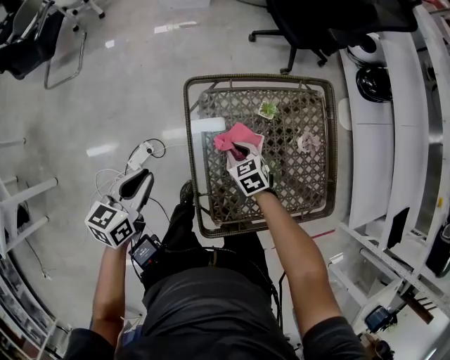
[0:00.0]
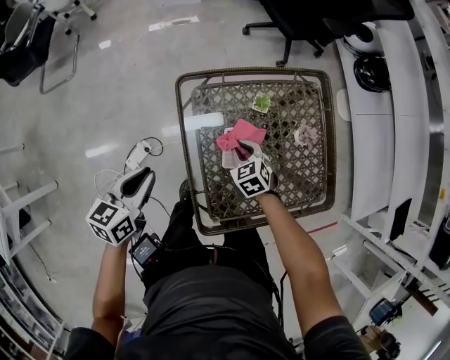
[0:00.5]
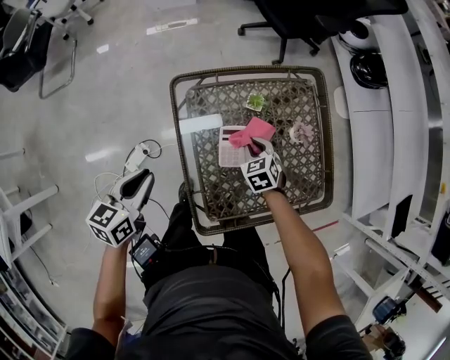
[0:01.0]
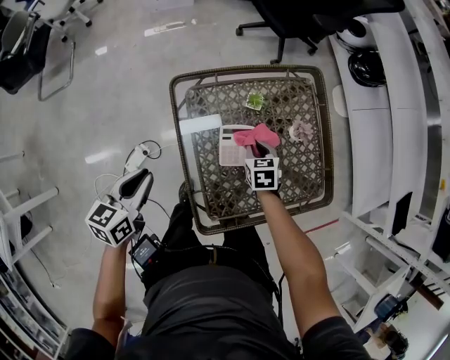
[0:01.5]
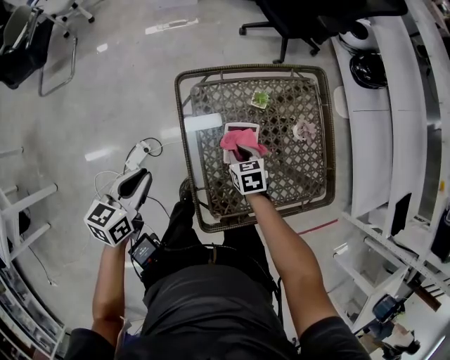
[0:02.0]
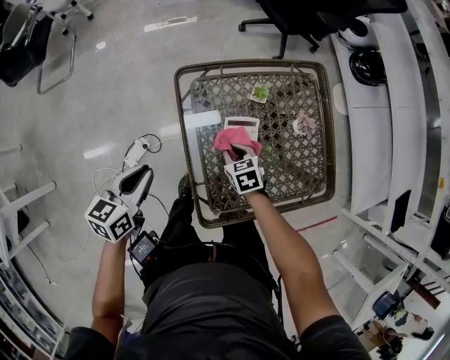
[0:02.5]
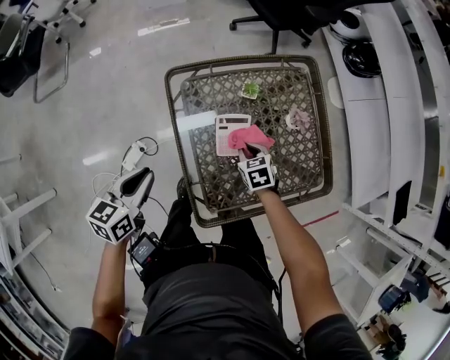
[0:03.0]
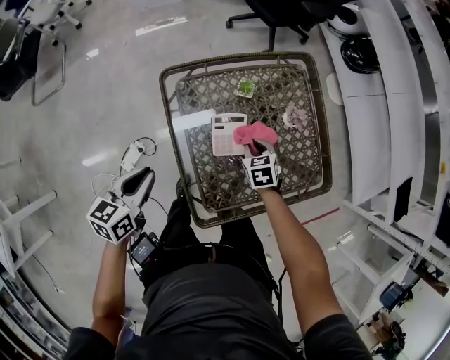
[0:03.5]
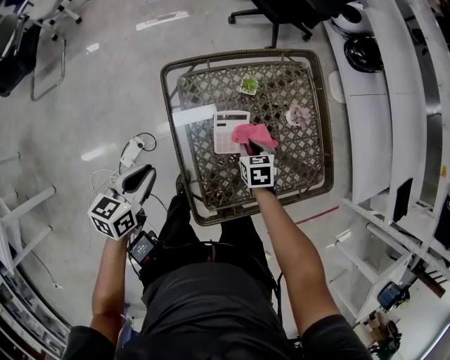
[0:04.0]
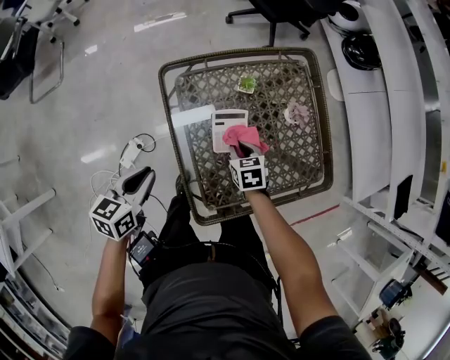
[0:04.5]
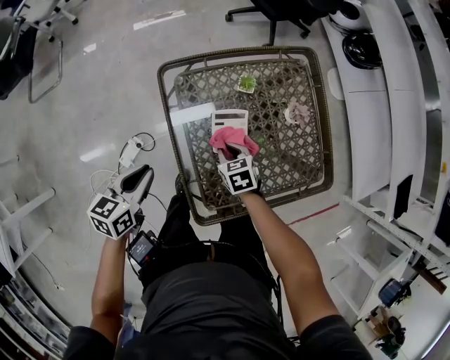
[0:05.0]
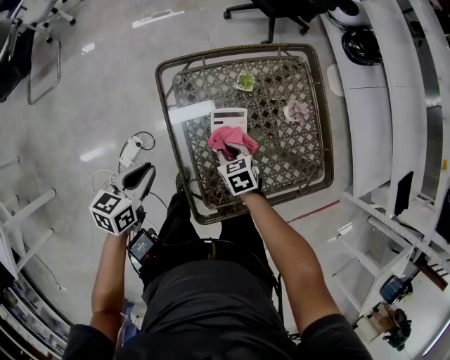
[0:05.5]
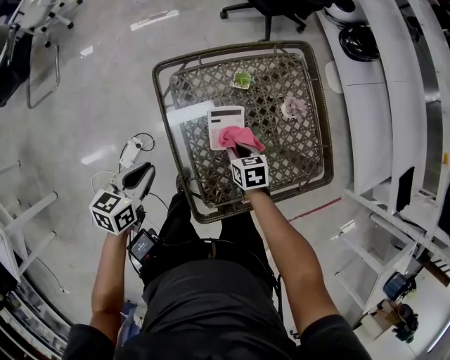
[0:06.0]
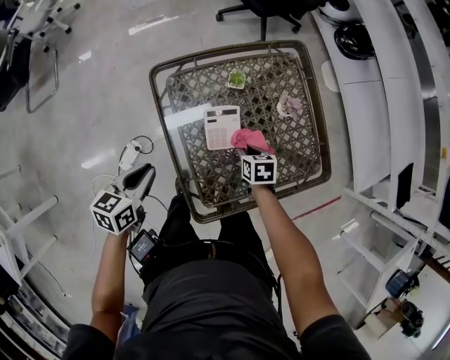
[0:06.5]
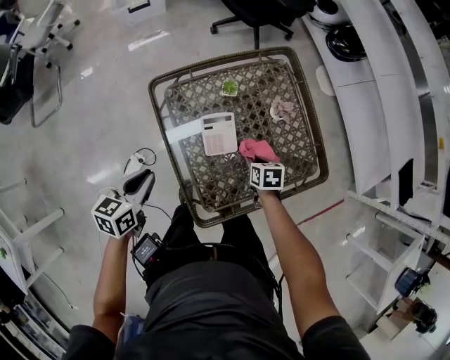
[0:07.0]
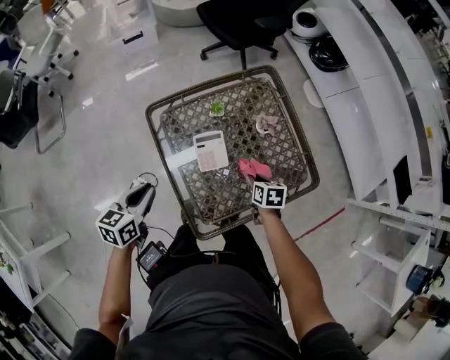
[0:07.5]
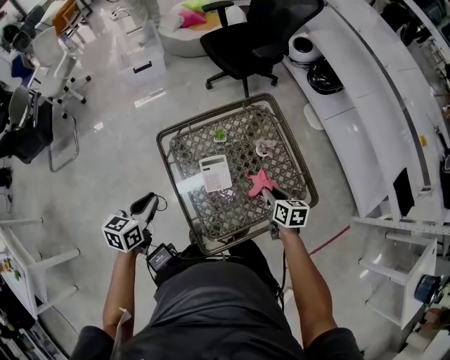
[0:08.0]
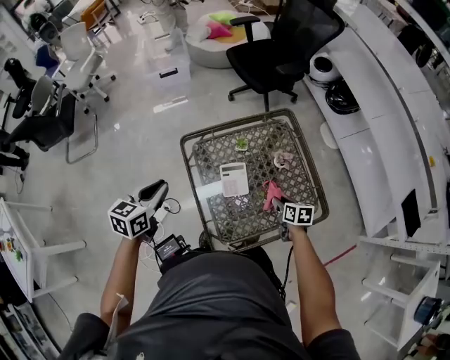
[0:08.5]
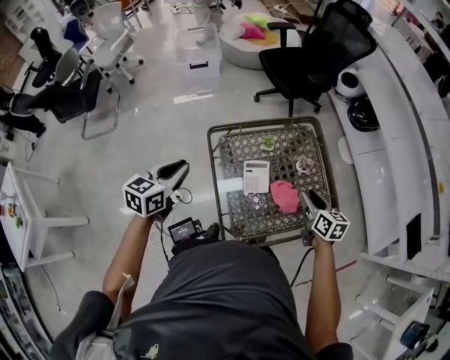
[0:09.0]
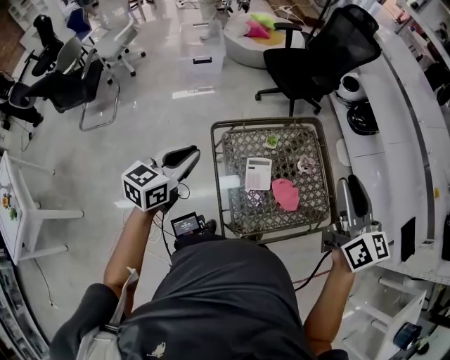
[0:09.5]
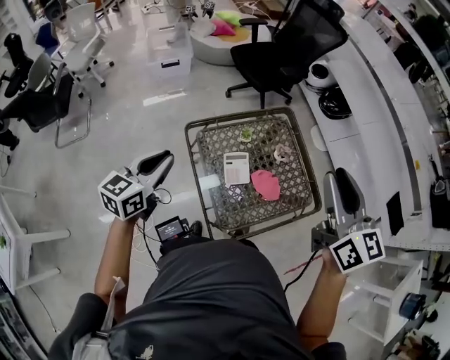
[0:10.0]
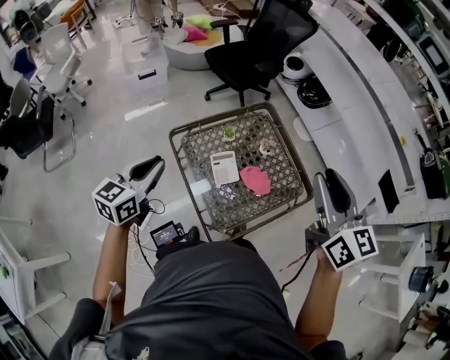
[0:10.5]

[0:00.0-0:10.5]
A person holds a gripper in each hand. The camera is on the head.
0:00.0 to 0:02.0: The right gripper turns by approximately 20 degrees.
0:02.0 to 0:04.0: The left gripper moves roughly 5 cm. Meanwhile the right gripper is displaced to the right by approximately 10 cm.
0:04.0 to 0:06.5: The right gripper reaches some 5 cm to the left, then returns.
0:06.5 to 0:08.5: The right gripper goes approximately 15 cm to the right and upward, while the left gripper goes roughly 15 cm upward.
0:08.5 to 0:10.5: The left gripper moves upward, roughly 10 cm; the right gripper heads upward, covering approximately 50 cm, and tips its fingers upward by approximately 40 degrees.

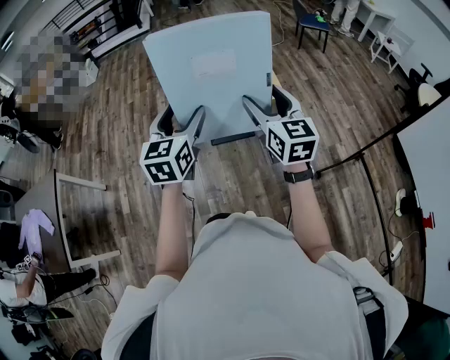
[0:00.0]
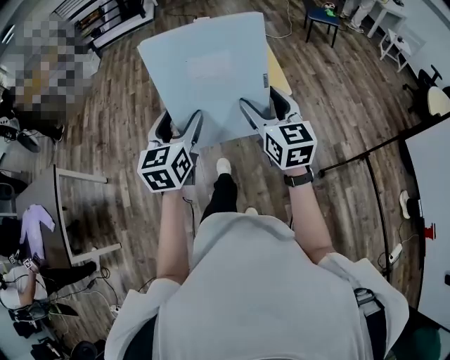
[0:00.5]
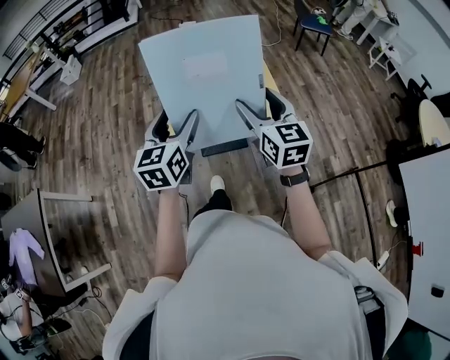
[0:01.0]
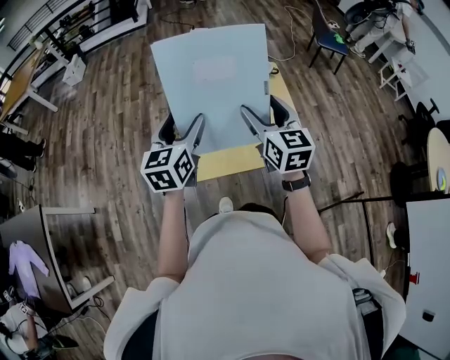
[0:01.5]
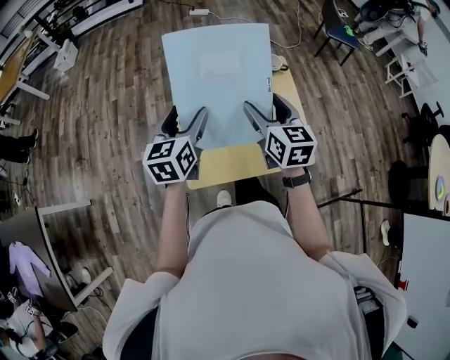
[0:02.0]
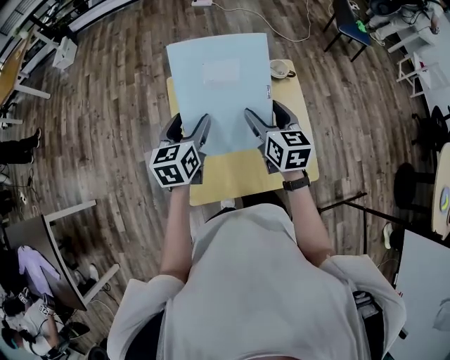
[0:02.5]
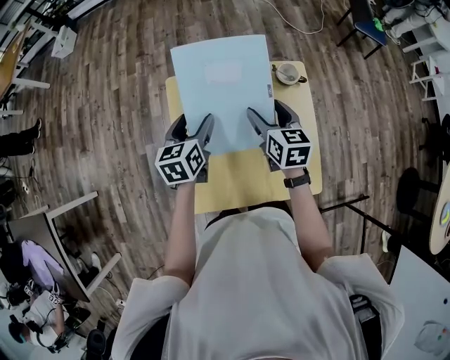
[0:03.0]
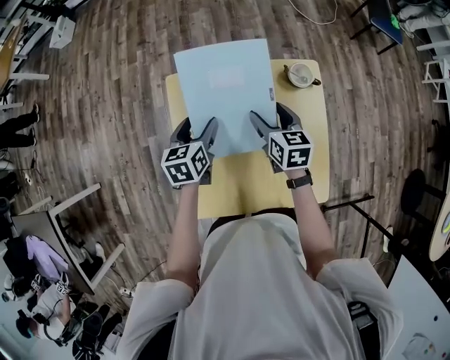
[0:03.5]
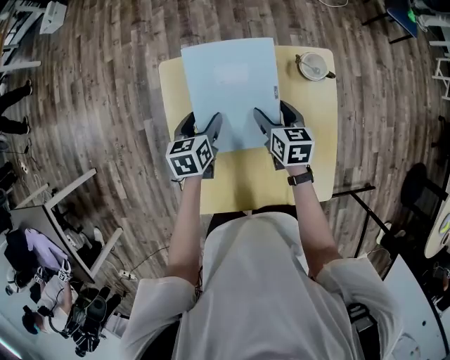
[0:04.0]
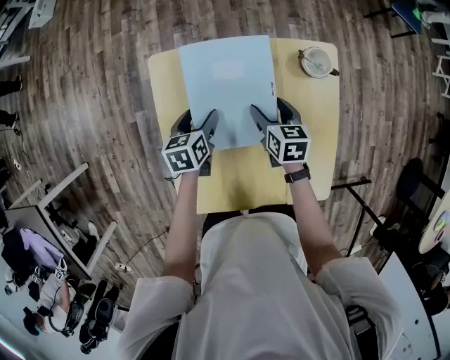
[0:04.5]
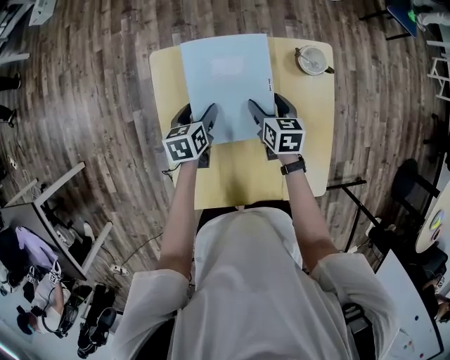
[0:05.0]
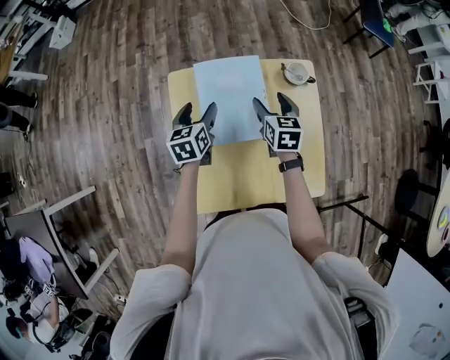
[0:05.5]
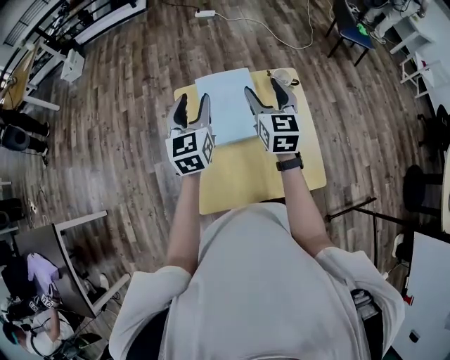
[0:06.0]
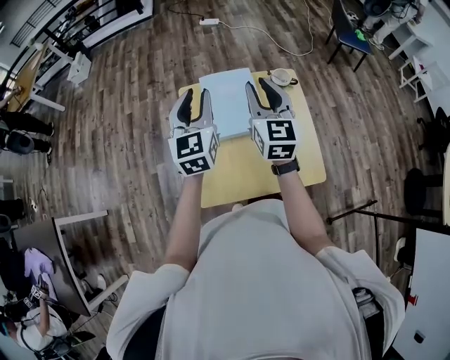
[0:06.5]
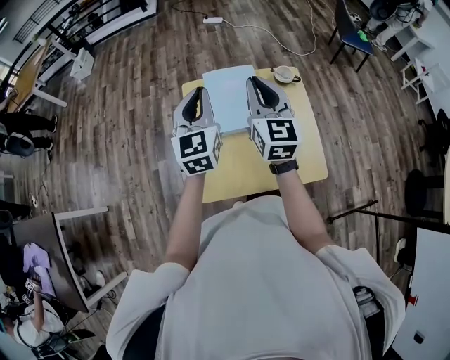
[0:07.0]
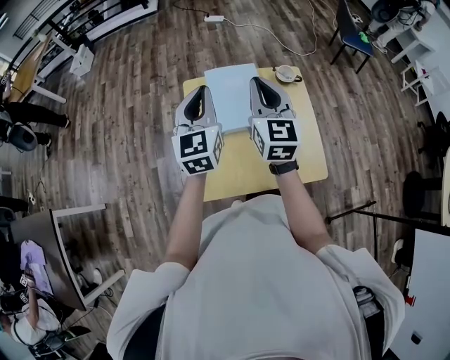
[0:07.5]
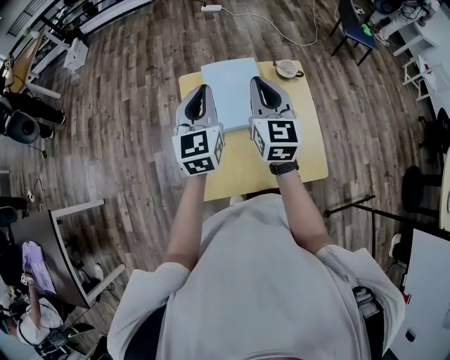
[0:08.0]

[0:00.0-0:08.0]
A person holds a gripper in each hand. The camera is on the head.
0:00.0 to 0:02.0: The pair of grippers is taken forward, some 40 cm.
0:02.0 to 0:04.0: Both grippers travel together downward and forward, about 35 cm. The left gripper swivels about 30 degrees, while the right gripper rotates some 30 degrees.
0:04.0 to 0:06.0: Both grippers travel together upward, some 25 cm. The left gripper angles its fingers upward, by about 30 degrees. The right gripper swivels approximately 40 degrees.
0:06.0 to 0:08.0: Both grippers travel together backward, roughly 5 cm. The left gripper closes up; the right gripper closes.

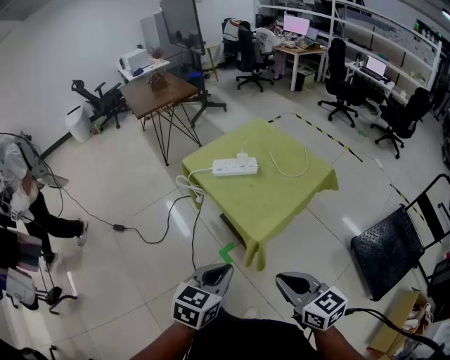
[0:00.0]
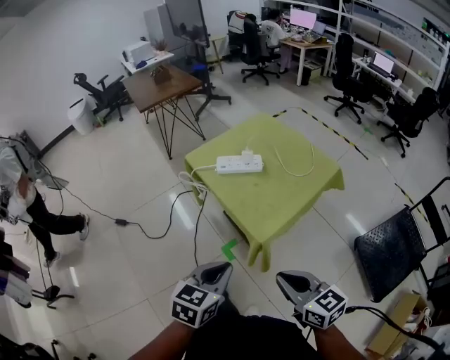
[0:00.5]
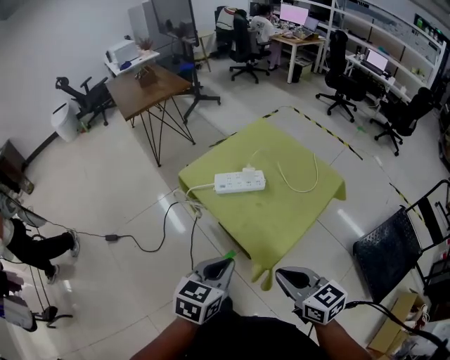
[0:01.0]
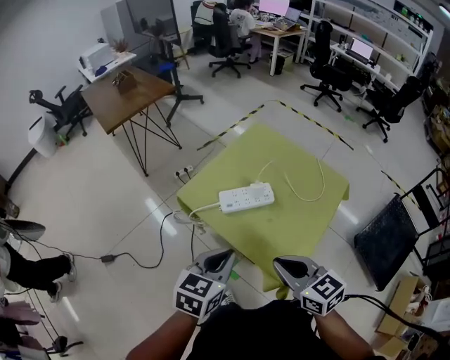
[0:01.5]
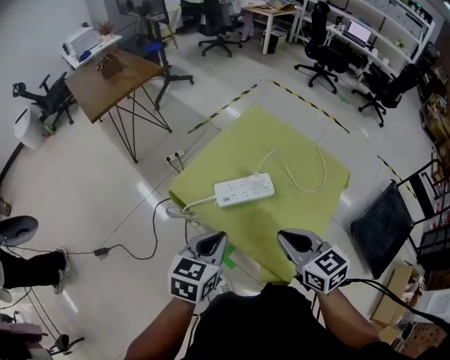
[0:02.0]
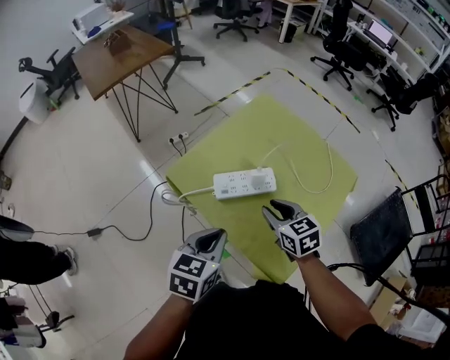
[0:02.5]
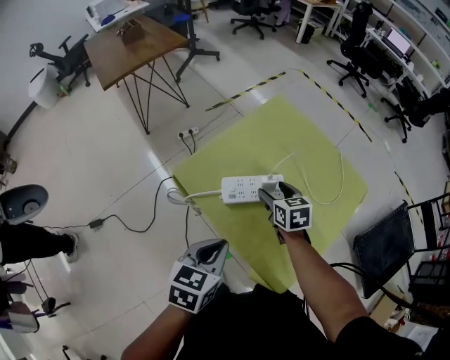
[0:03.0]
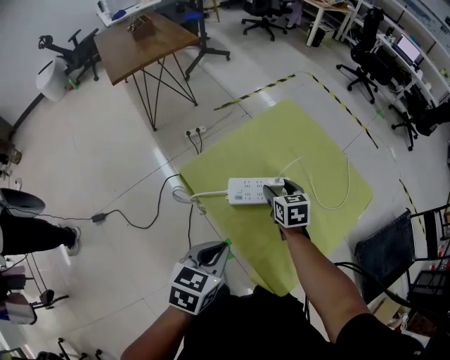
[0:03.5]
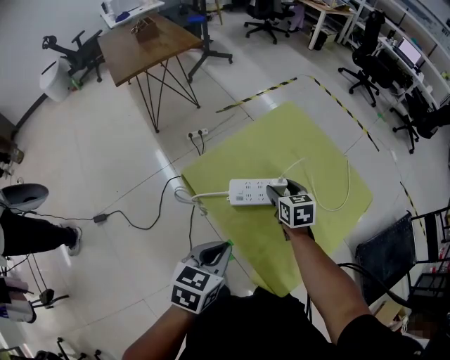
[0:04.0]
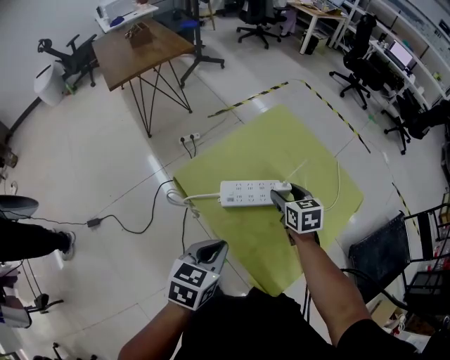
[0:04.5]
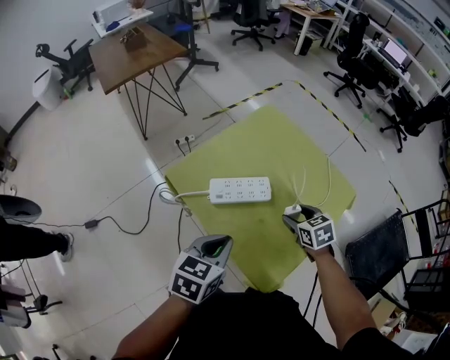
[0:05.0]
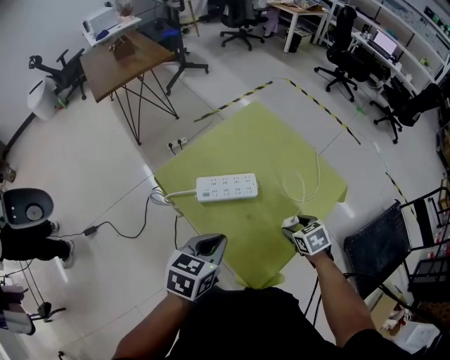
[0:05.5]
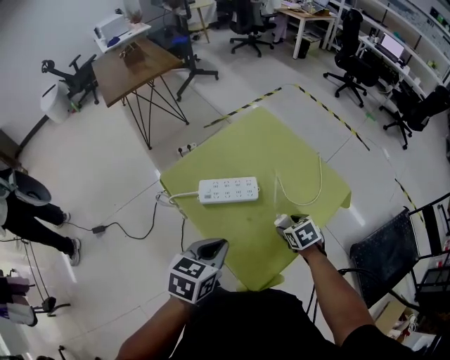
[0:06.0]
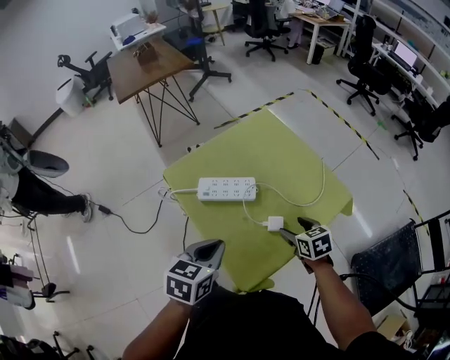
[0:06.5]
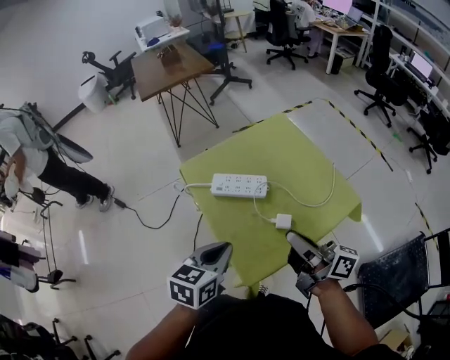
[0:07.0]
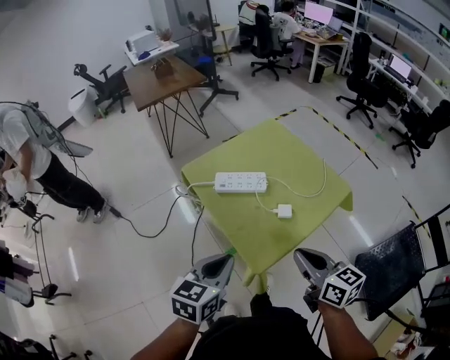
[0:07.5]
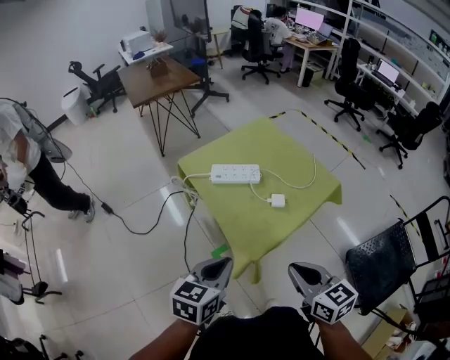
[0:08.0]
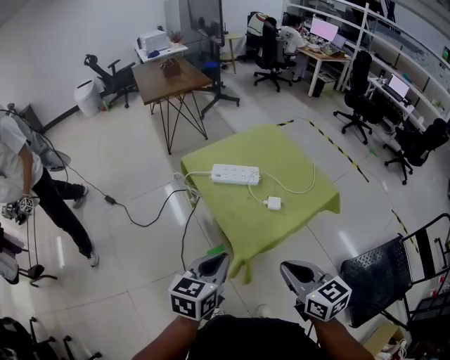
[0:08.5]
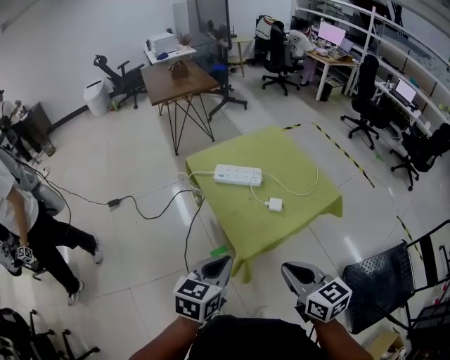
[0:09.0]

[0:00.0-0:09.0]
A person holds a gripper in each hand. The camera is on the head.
0:00.0 to 0:02.0: Both grippers travel together forward, some 35 cm.
0:02.0 to 0:04.5: The right gripper travels forward and downward by approximately 25 cm, and opens up.
0:04.5 to 0:07.0: The right gripper shifts about 25 cm backward, upward and to the right, tilts its fingers approximately 50 degrees upward, and closes up; the left gripper moves to the right, backward and upward, approximately 15 cm.
0:07.0 to 0:09.0: The two grippers go approximately 20 cm backward. The right gripper points its fingers about 30 degrees further downward.
